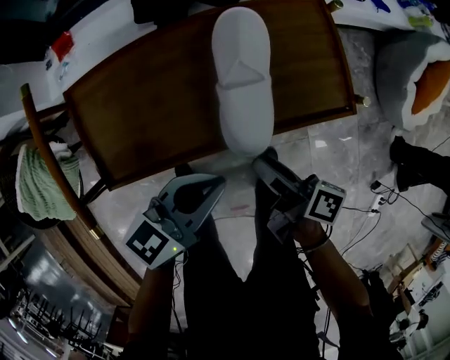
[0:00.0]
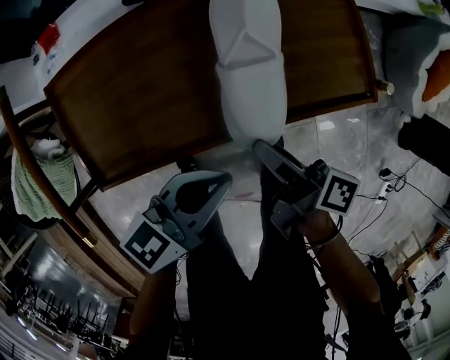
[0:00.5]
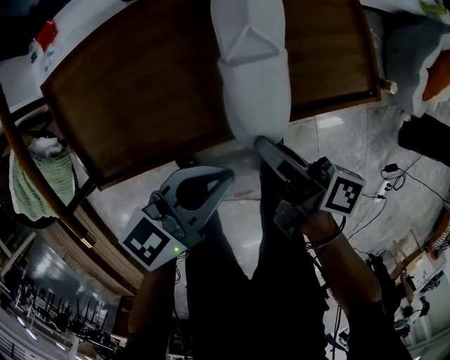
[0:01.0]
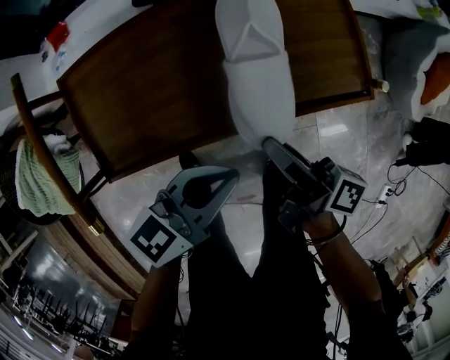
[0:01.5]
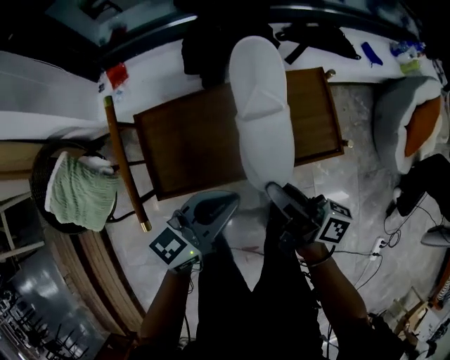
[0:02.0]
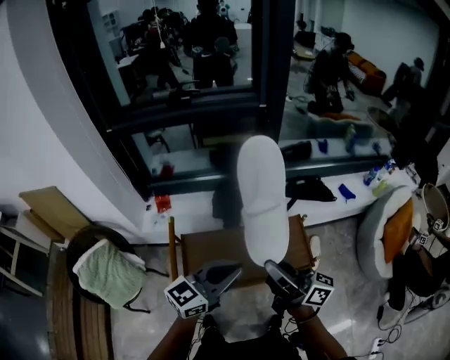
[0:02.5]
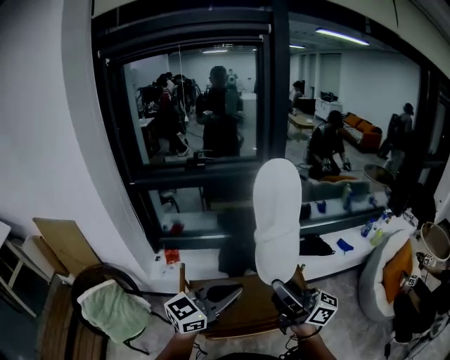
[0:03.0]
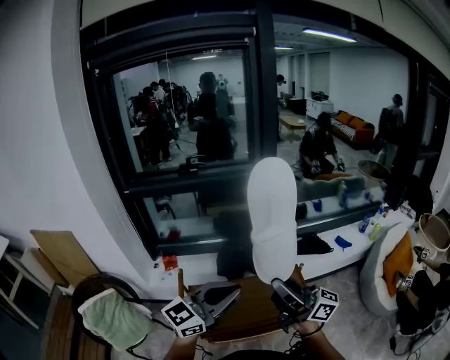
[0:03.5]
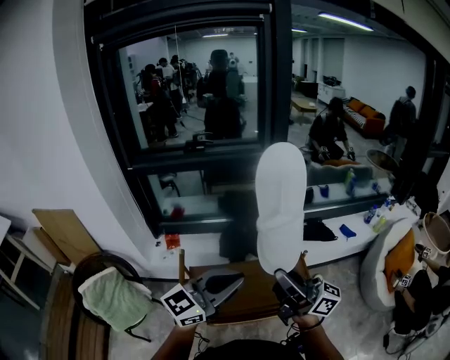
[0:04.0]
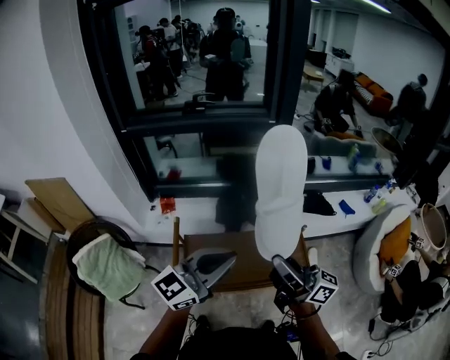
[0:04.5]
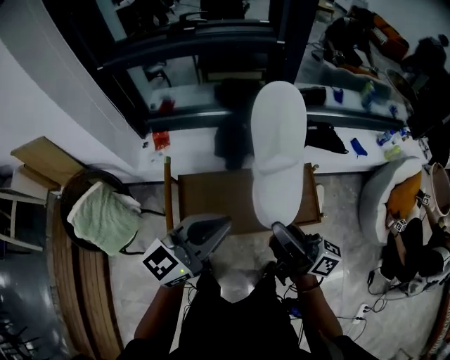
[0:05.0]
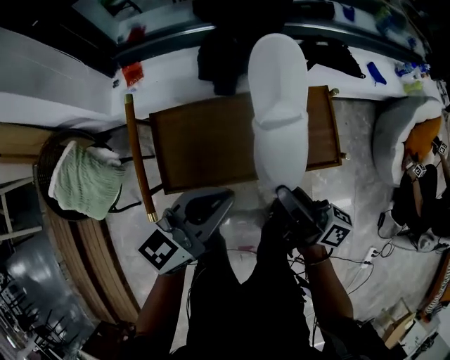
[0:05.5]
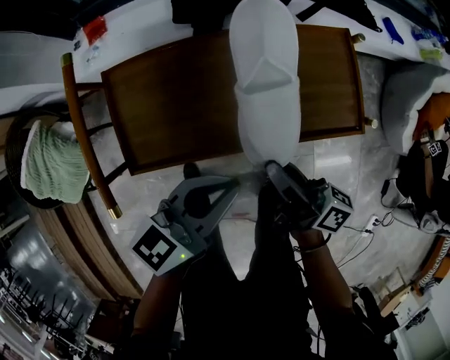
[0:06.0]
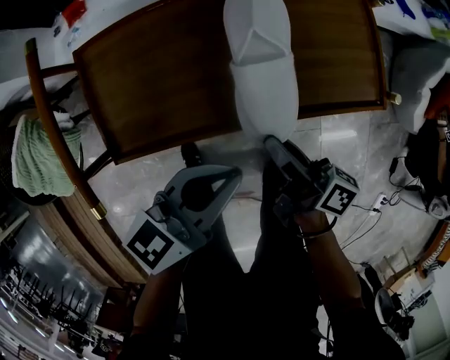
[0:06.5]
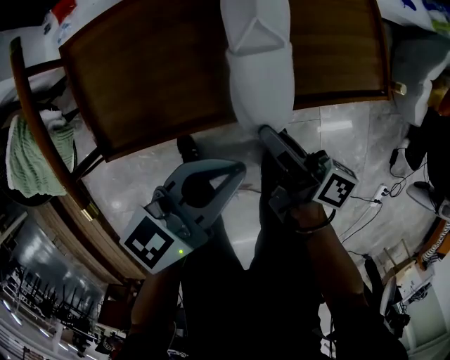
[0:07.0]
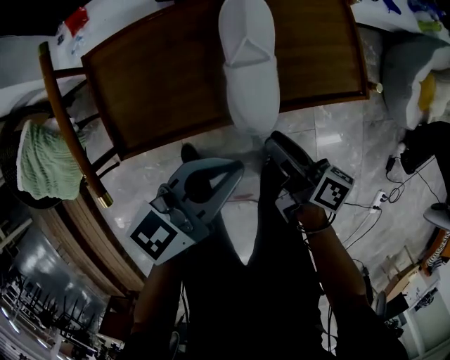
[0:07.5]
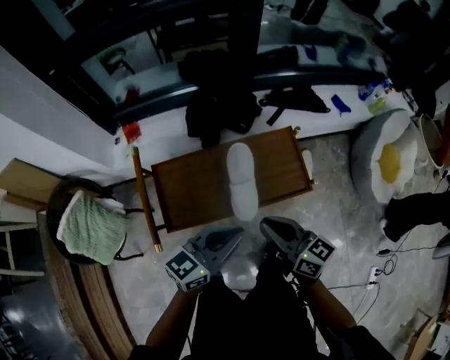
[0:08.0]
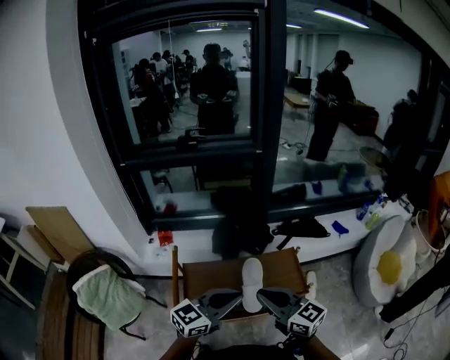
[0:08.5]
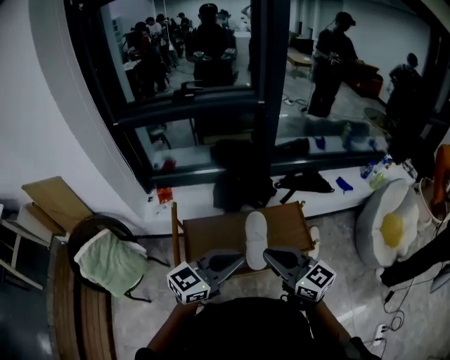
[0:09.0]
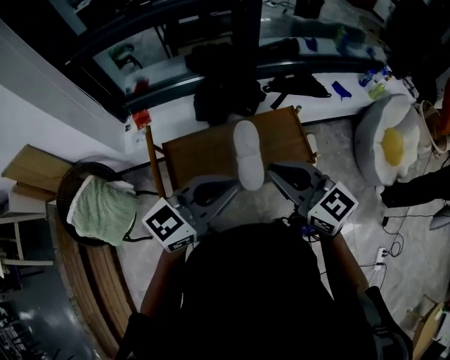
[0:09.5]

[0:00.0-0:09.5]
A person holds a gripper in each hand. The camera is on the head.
0:00.0 to 0:02.0: The left gripper heads upward, covering about 10 cm. Meanwhile the right gripper is displaced upward by some 15 cm, turns by approximately 30 degrees, and closes its fingers.
0:02.0 to 0:04.0: Both grippers travel together upward, roughly 35 cm. The left gripper changes its angle by roughly 30 degrees. Meanwhile the right gripper swivels roughly 40 degrees.
0:04.0 to 0:05.5: The two grippers go some 25 cm downward. The left gripper changes its angle by some 30 degrees. Meanwhile the right gripper turns by some 40 degrees.
0:05.5 to 0:07.5: Both grippers move downward, some 20 cm. The right gripper swivels about 30 degrees, and opens up.
0:07.5 to 0:09.5: The two grippers go approximately 30 cm upward. The left gripper rotates approximately 20 degrees. Meanwhile the right gripper rolls counterclockwise, seen from behind, by about 70 degrees, and closes its fingers.

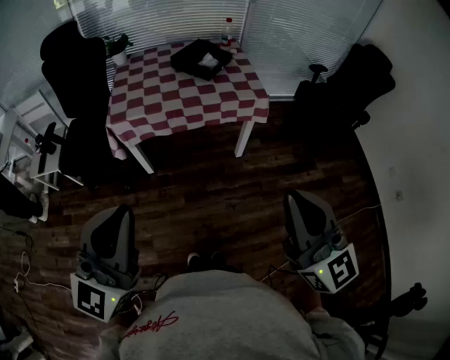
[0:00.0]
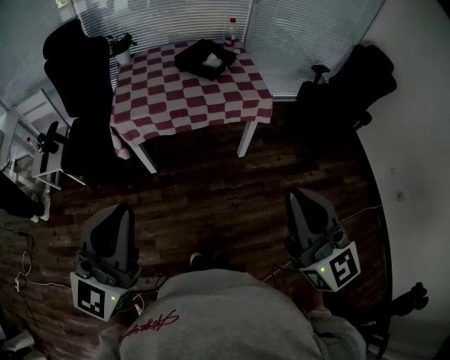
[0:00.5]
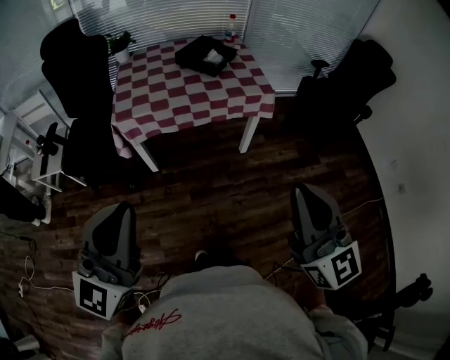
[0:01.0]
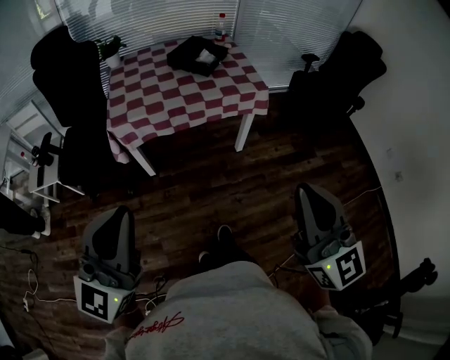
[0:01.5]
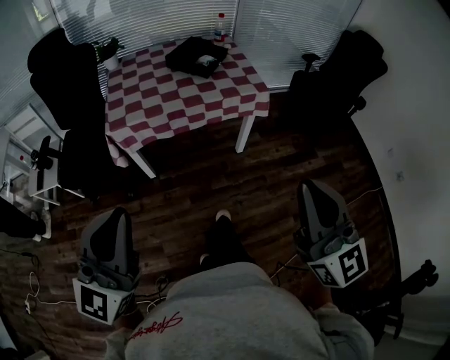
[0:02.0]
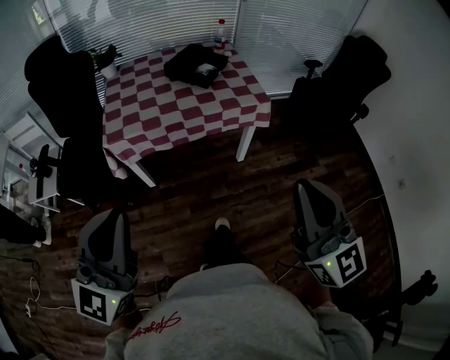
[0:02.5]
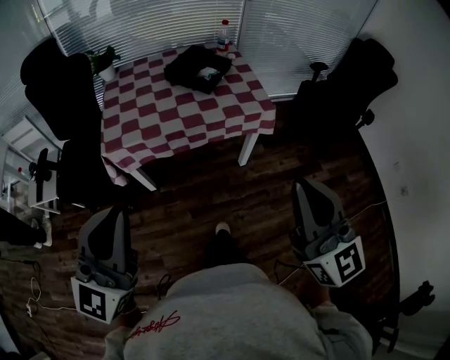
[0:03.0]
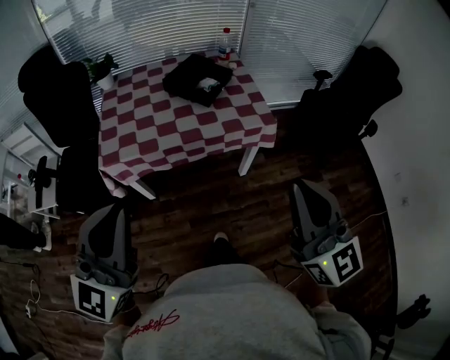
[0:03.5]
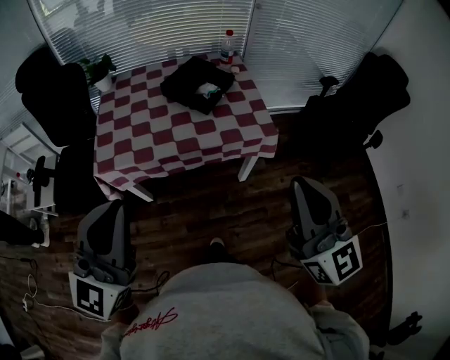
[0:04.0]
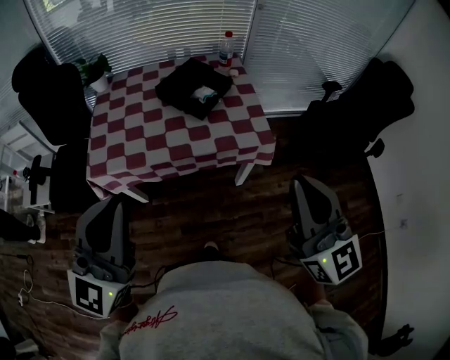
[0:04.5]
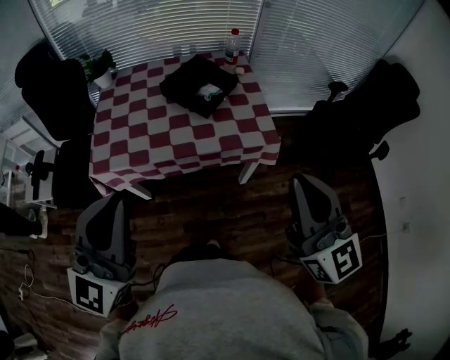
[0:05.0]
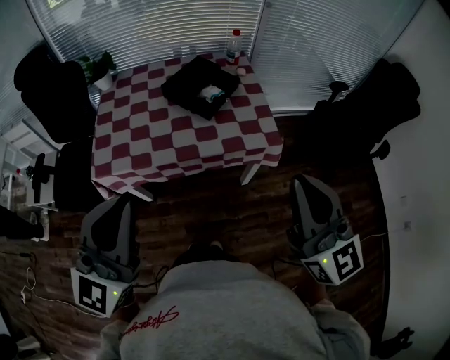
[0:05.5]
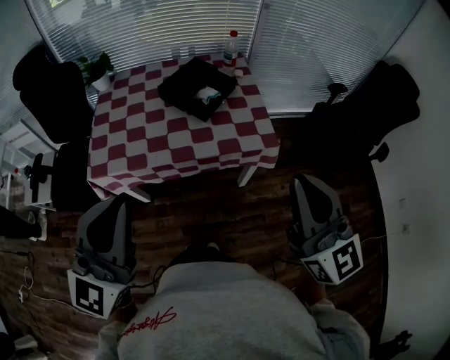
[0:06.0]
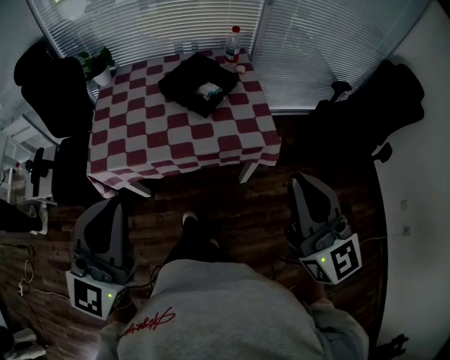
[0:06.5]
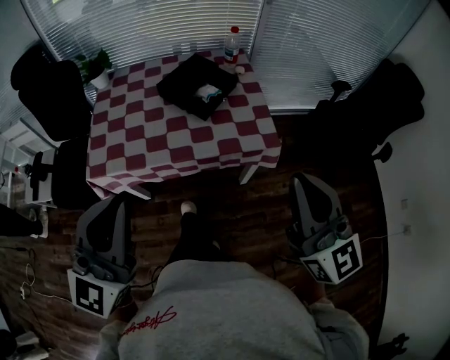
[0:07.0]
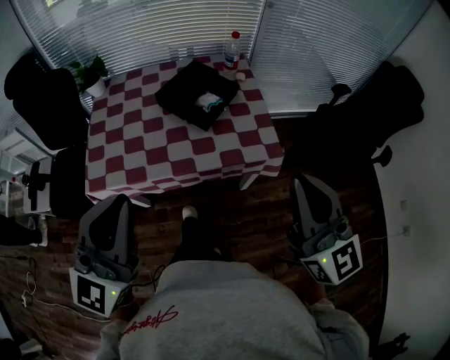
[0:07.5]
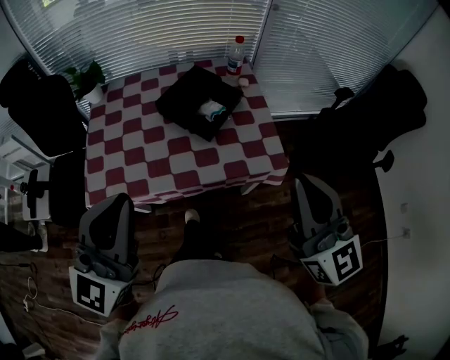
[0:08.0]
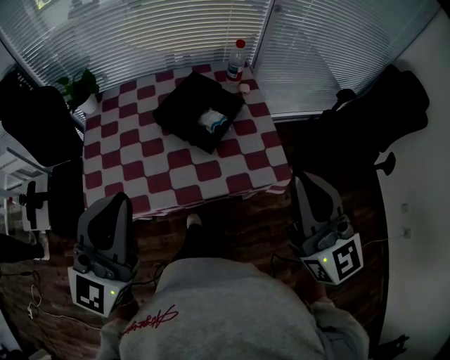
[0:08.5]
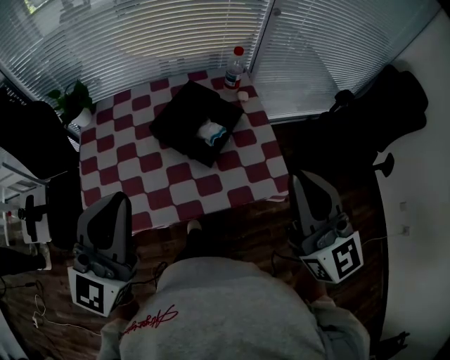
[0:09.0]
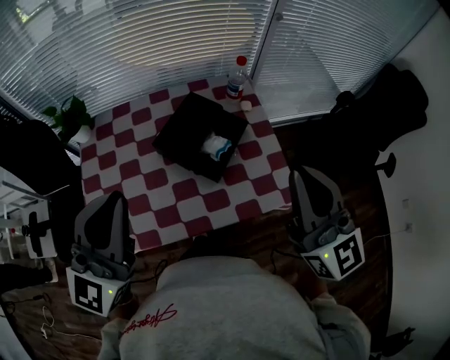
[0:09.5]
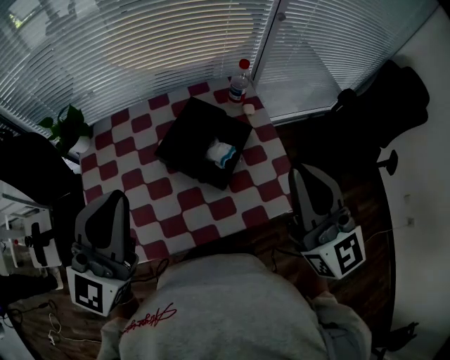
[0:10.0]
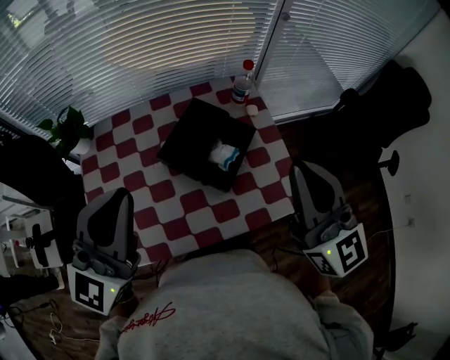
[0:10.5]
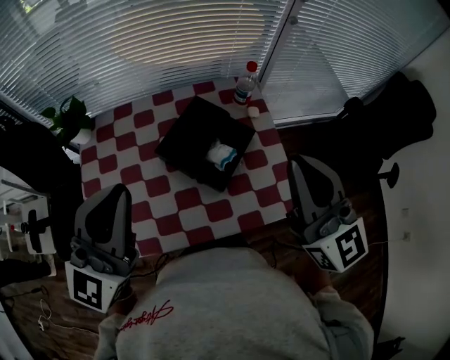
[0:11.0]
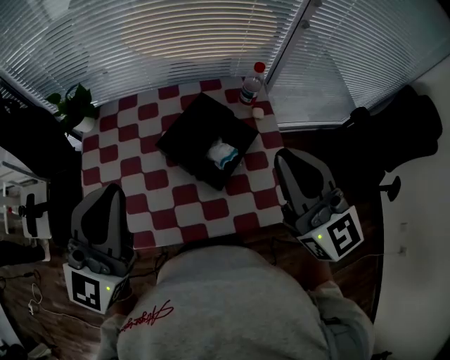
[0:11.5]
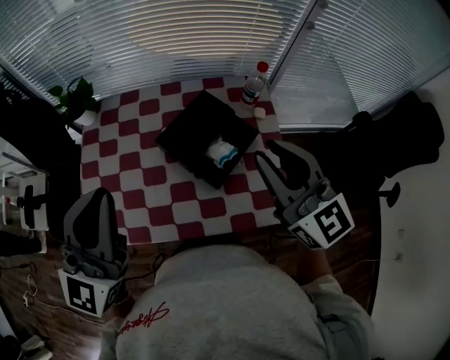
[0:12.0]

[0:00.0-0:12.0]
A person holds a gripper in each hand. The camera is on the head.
0:00.0 to 0:02.0: The left gripper heads to the left, covering some 5 cm.
0:02.0 to 0:04.0: Both grippers move forward, some 25 cm.
0:04.0 to 0:06.0: Both grippers travel together forward, roughly 5 cm.
0:06.0 to 0:08.0: The grippers both shift forward by roughly 10 cm.
0:08.0 to 0:10.0: Both grippers move forward, roughly 20 cm.
0:10.0 to 0:12.0: The right gripper goes roughly 5 cm forward, rotates about 20 degrees, and opens up.

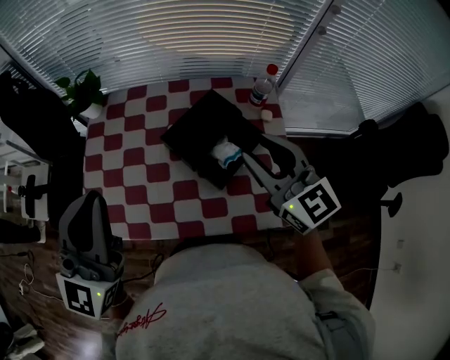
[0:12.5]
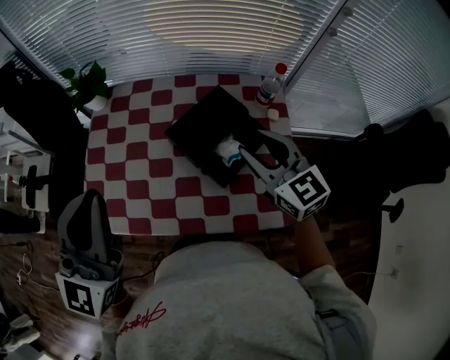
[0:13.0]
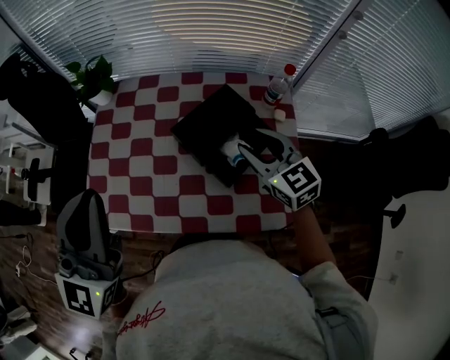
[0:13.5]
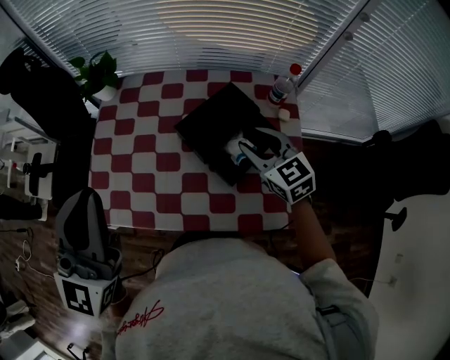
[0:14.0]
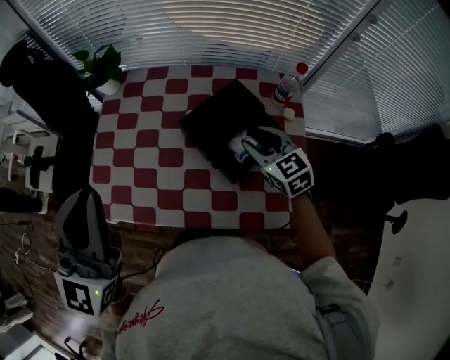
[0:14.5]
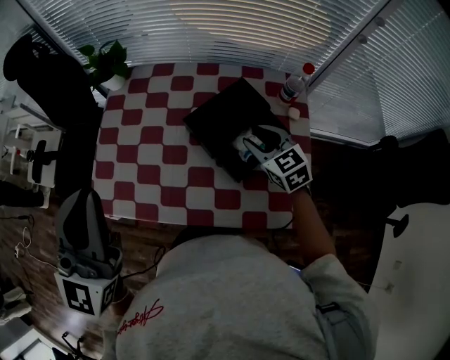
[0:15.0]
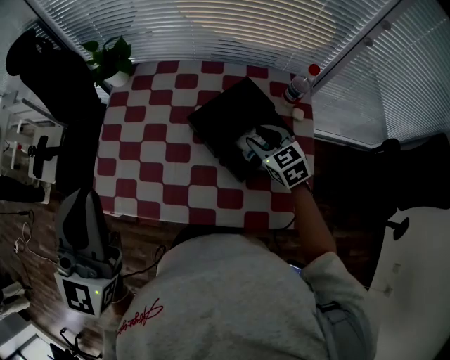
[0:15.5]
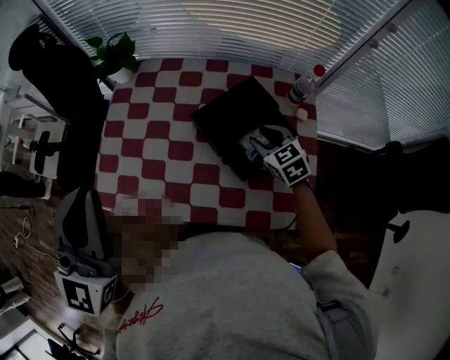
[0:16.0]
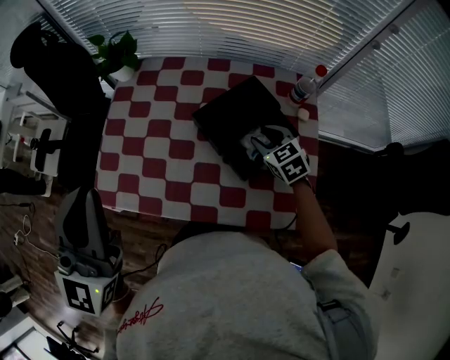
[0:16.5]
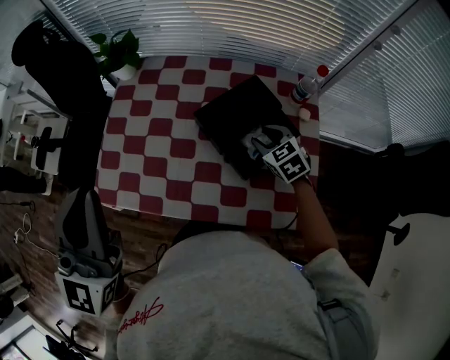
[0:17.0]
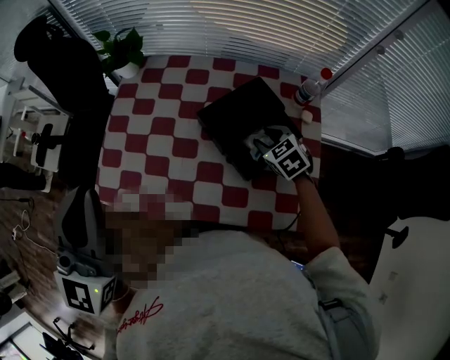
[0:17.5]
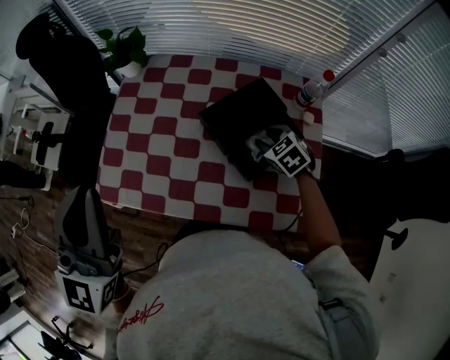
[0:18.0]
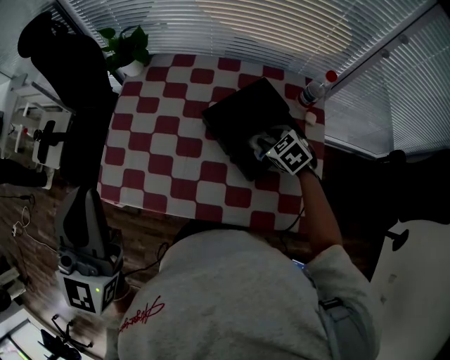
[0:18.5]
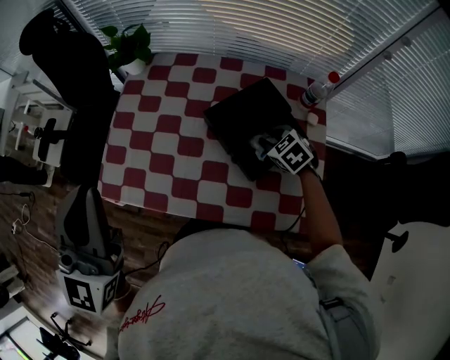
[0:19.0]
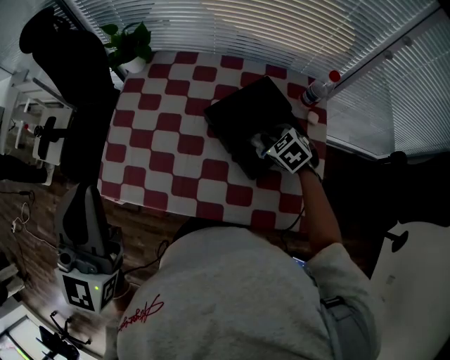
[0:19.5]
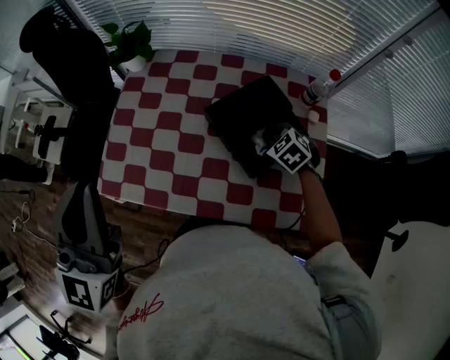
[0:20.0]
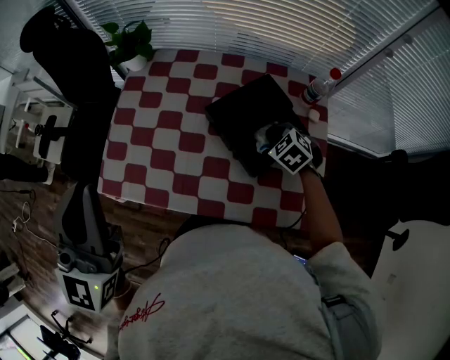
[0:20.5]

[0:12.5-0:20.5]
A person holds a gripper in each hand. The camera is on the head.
0:12.5 to 0:14.5: The right gripper shifts about 15 cm downward and forward, and changes its angle by approximately 20 degrees.
0:14.5 to 0:16.5: The right gripper shifts some 10 cm downward.
0:16.5 to 0:18.5: The grippers move only a little.
0:18.5 to 0:20.5: The right gripper closes up.
